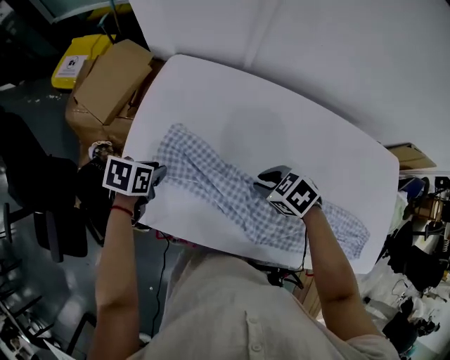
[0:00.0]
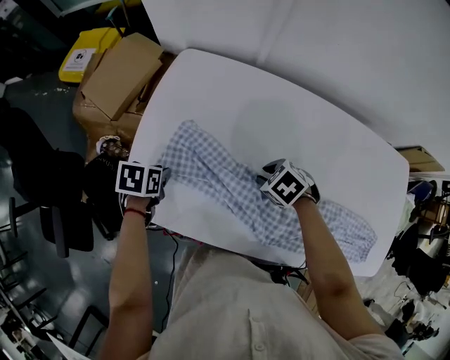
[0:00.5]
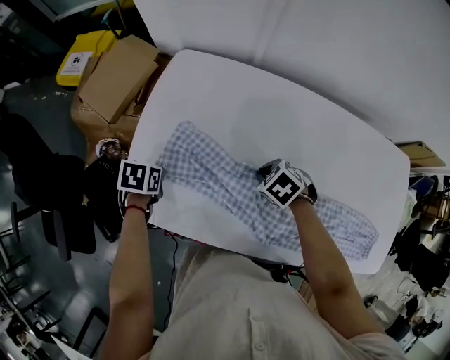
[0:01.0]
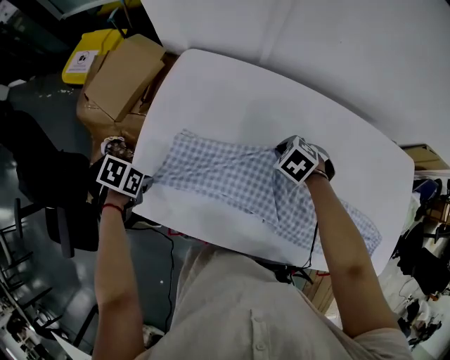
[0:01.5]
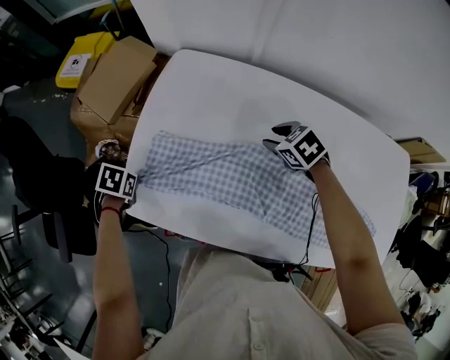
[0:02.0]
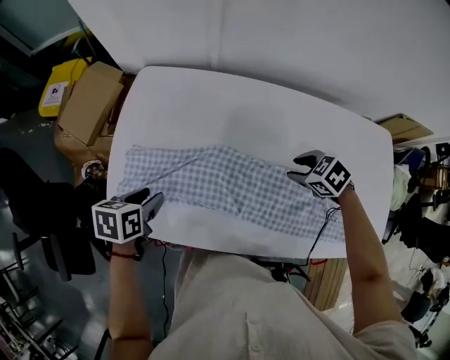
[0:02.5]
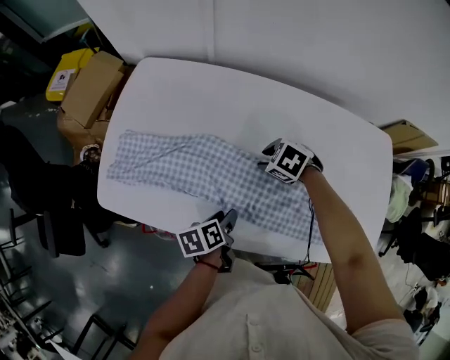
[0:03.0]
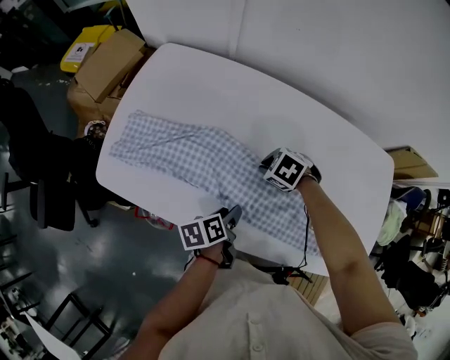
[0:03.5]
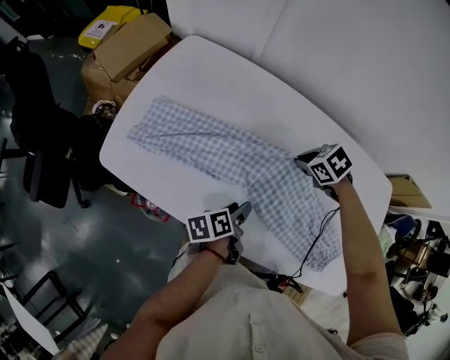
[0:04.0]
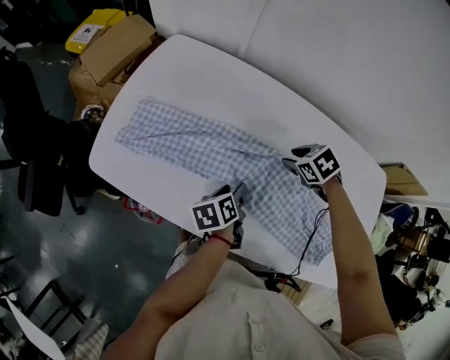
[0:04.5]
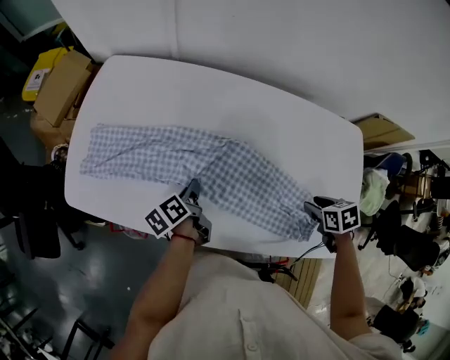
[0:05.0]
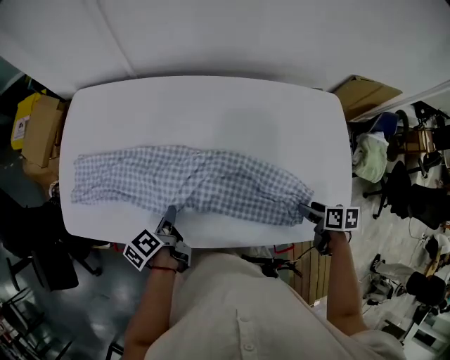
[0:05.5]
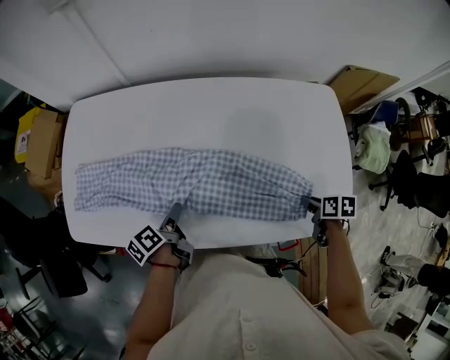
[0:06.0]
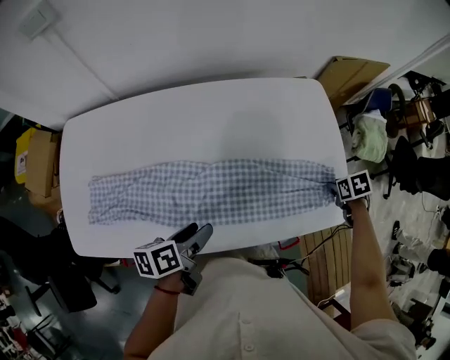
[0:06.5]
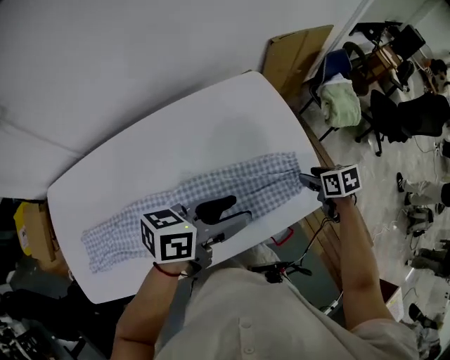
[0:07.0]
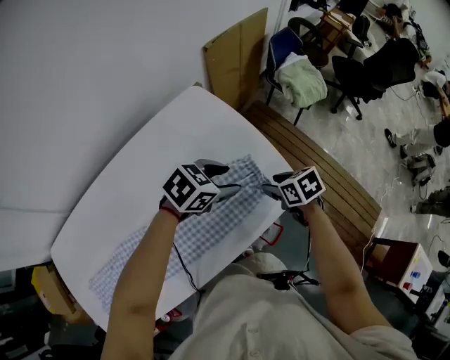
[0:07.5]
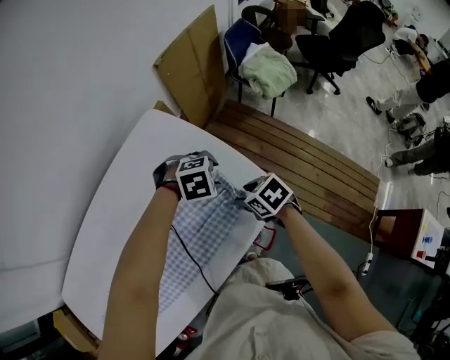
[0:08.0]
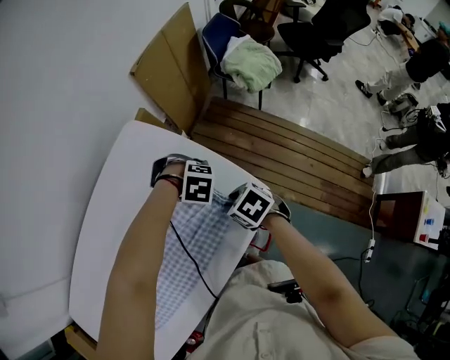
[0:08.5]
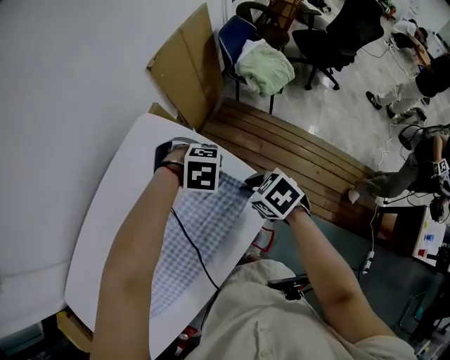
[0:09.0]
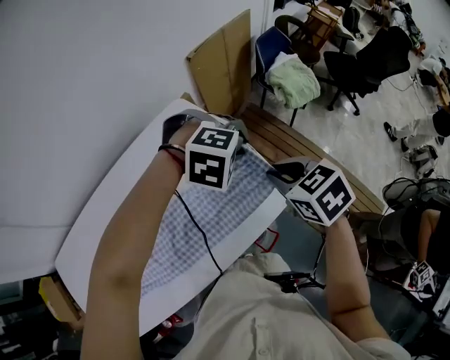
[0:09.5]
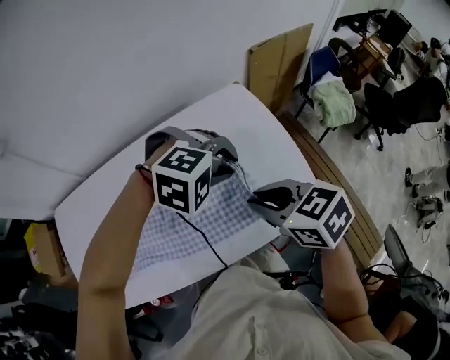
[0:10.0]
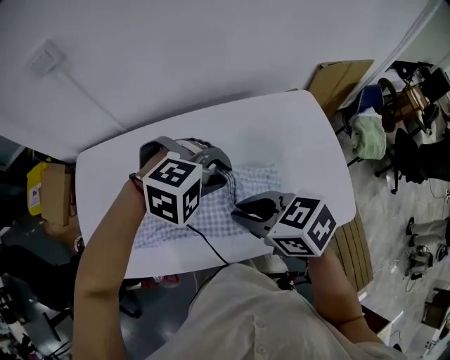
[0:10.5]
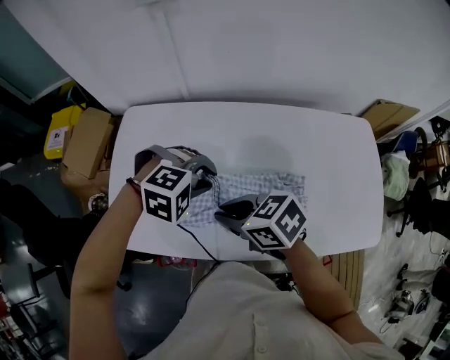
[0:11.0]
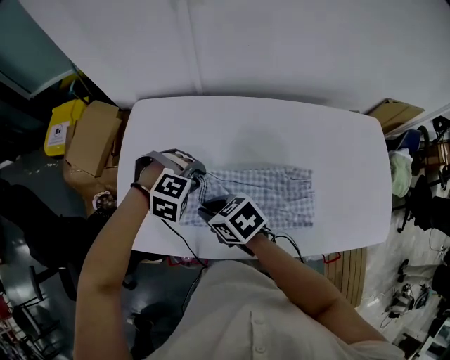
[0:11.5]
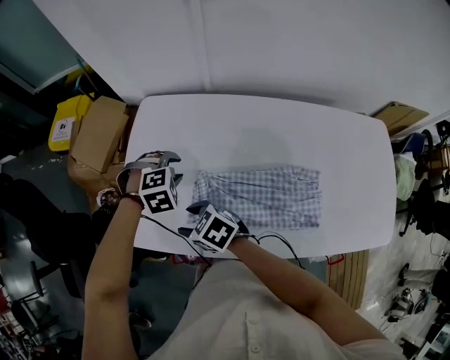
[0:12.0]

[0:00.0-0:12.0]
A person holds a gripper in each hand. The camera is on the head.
0:00.0 to 0:02.0: The left gripper moves some 15 cm, and rotates some 20 degrees. Meanwhile the right gripper changes place by about 10 cm, and opens up.
0:02.0 to 0:04.0: The right gripper changes place by approximately 20 cm, and closes its fingers. The left gripper moves some 10 cm upward and comes back, points its fingers approximately 50 degrees further upward, and opens its fingers.
0:04.0 to 0:06.0: The left gripper closes, then reopens. Meanwhile the right gripper ends up roughly 40 cm from where it was, twists roughly 80 degrees clockwise, seen from behind, and opens, then closes again.
0:06.0 to 0:08.0: The left gripper moves approximately 20 cm upward and comes back, and tips its fingers downward by some 30 degrees; the right gripper moves approximately 10 cm, and opens its fingers.
0:08.0 to 0:10.0: The two grippers go about 20 cm upward. The left gripper closes; the right gripper changes its angle by roughly 30 degrees, and closes its fingers.
0:10.0 to 0:12.0: The pair of grippers is taken roughly 70 cm. The right gripper changes its angle by about 50 degrees, and opens. Meanwhile the left gripper rolls counterclockwise, seen from behind, by approximately 60 degrees.

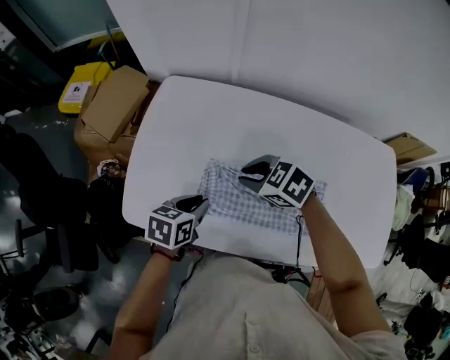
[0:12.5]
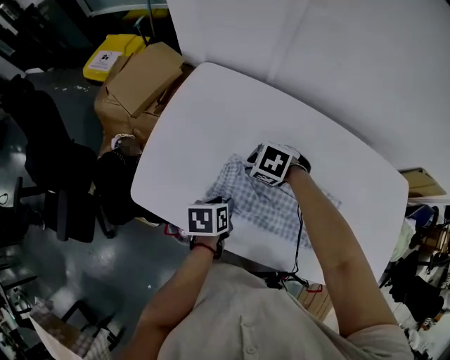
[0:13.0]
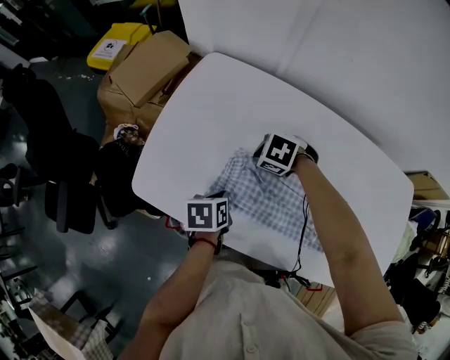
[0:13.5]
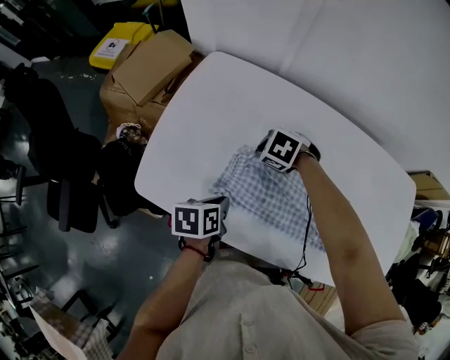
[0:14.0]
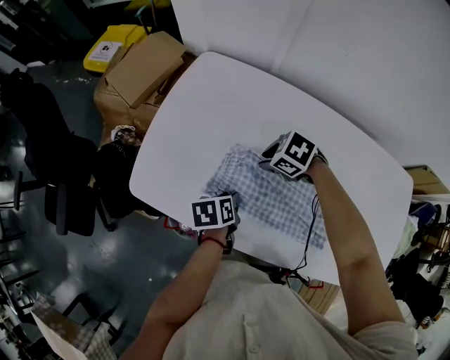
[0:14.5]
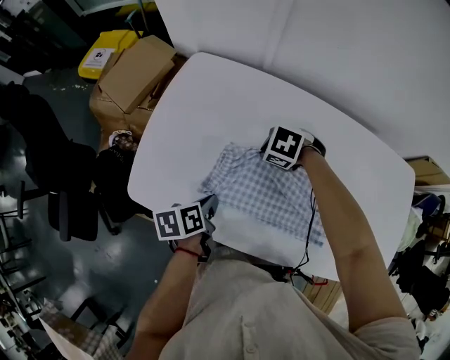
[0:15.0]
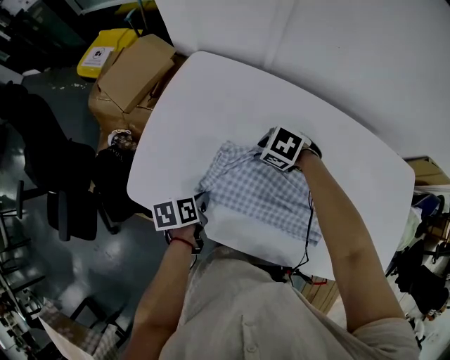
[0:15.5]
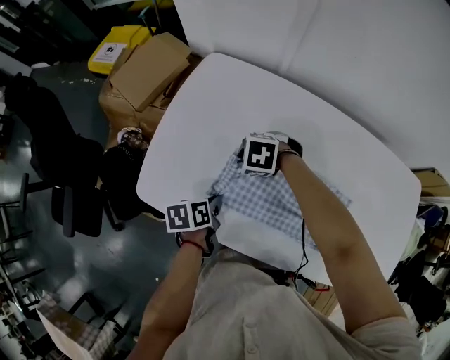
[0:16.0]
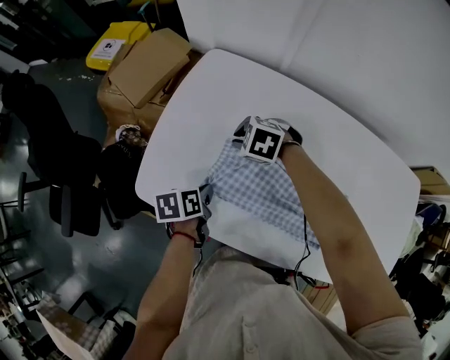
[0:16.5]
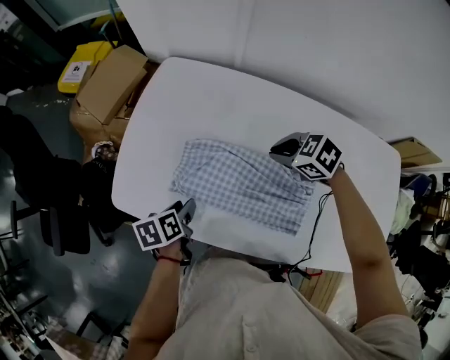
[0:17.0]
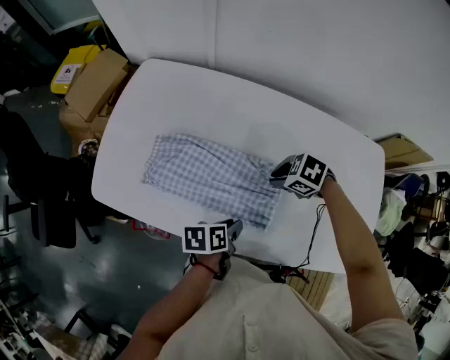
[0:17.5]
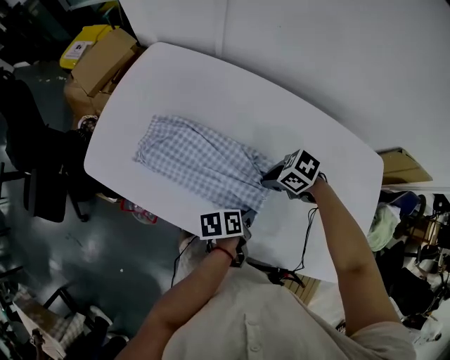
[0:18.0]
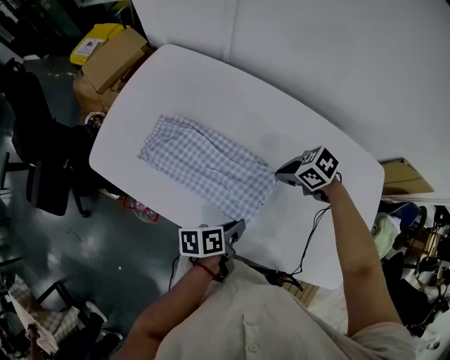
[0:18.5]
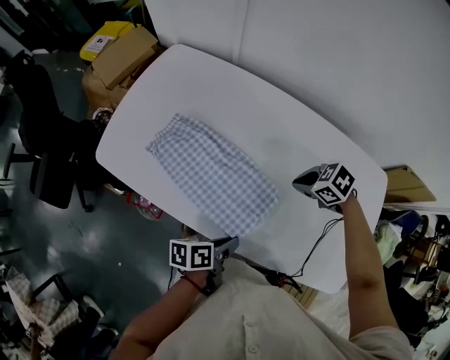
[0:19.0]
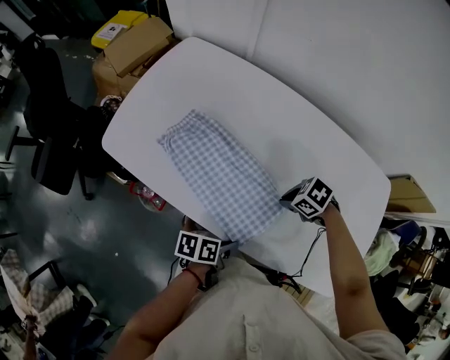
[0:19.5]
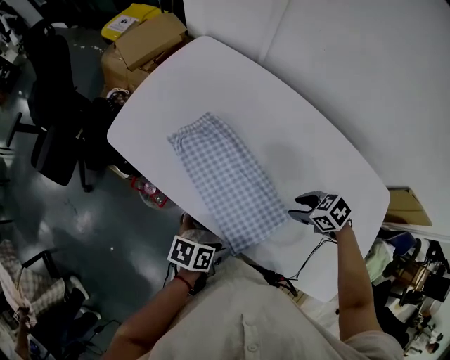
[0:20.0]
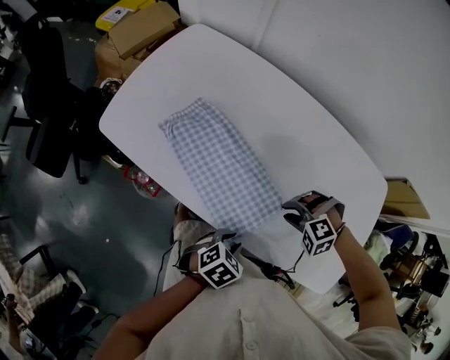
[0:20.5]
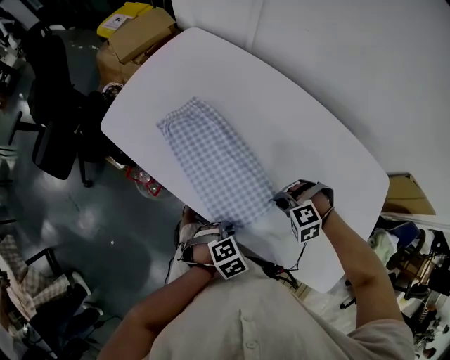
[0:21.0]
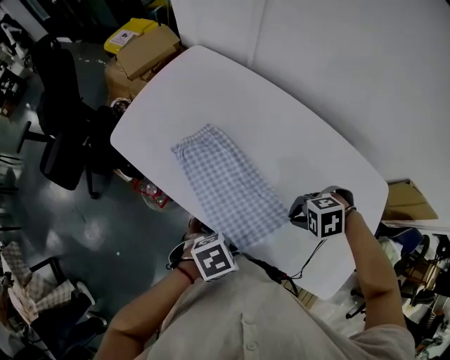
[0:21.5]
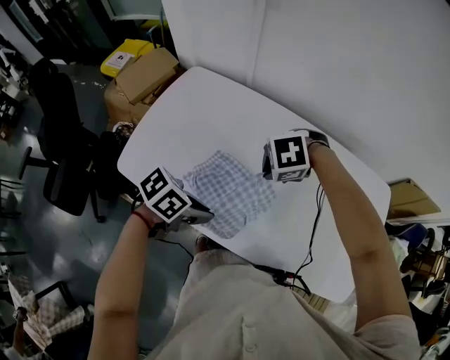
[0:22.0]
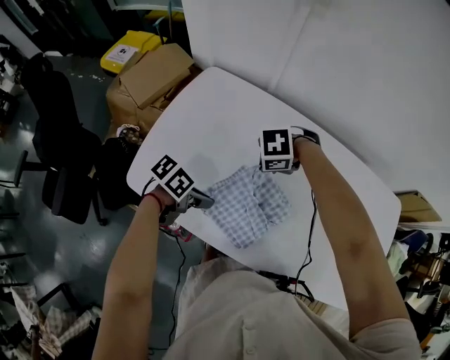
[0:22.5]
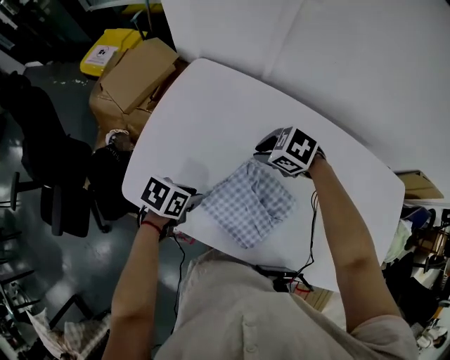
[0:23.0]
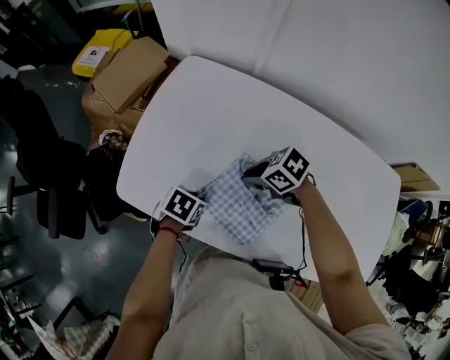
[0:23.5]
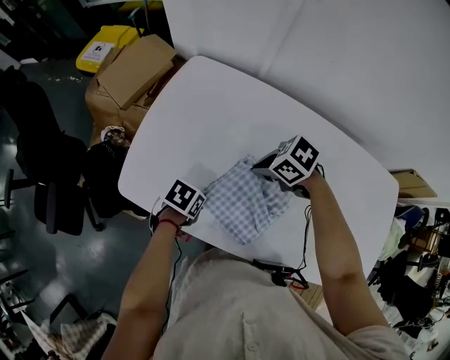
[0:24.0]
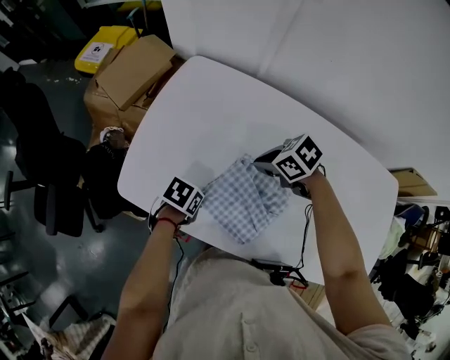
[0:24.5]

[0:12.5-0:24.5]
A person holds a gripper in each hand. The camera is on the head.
0:12.5 to 0:14.5: The two grippers go approximately 10 cm downward. The left gripper changes its angle by approximately 40 degrees, while the right gripper rotates roughly 20 degrees.
0:14.5 to 0:16.5: The left gripper shifts by some 10 cm, and closes its fingers; the right gripper moves some 10 cm, and swivels about 20 degrees.
0:16.5 to 0:18.5: The left gripper ends up some 40 cm from where it was, rotates approximately 30 degrees, and opens, then closes once more, while the right gripper shifts by approximately 40 cm, and turns by roughly 30 degrees.
0:18.5 to 0:20.5: The right gripper changes place by roughly 15 cm, twists about 70 degrees counterclockwise, seen from behind, and opens its fingers; the left gripper changes place by about 10 cm, rotates around the line of its fingers by about 60 degrees, clockwise from behind, and opens up.
0:20.5 to 0:22.5: The left gripper swings up and down, some 15 cm each way, with 2 reversals, and swivels some 40 degrees. The right gripper ends up some 35 cm from where it was, rotates some 30 degrees, and closes.
0:22.5 to 0:24.5: The right gripper swivels approximately 60 degrees, while the left gripper shifts some 10 cm downward, and changes its angle by roughly 30 degrees.

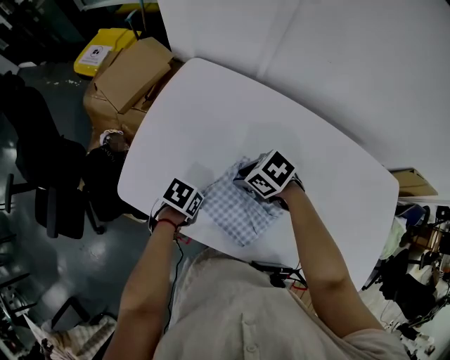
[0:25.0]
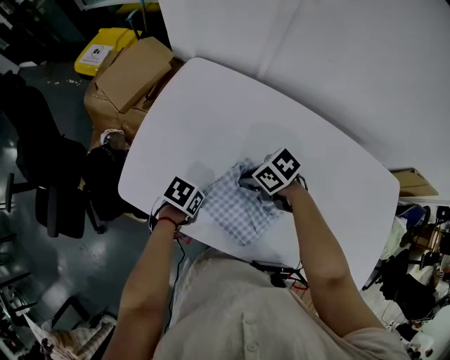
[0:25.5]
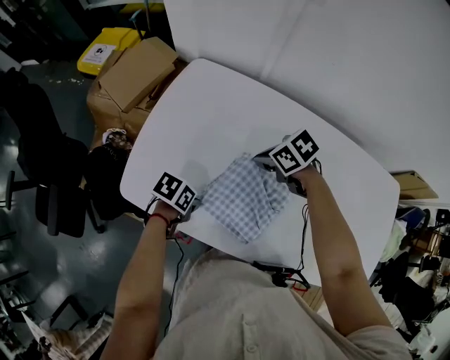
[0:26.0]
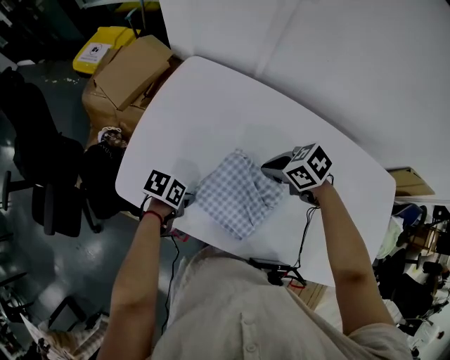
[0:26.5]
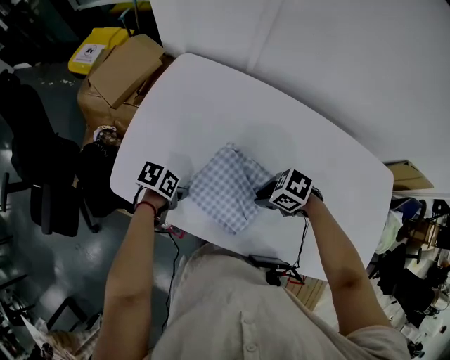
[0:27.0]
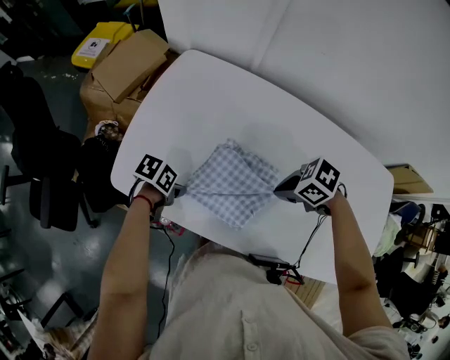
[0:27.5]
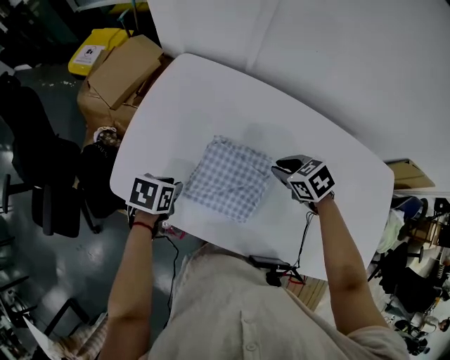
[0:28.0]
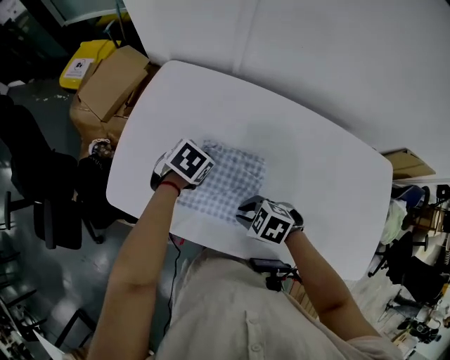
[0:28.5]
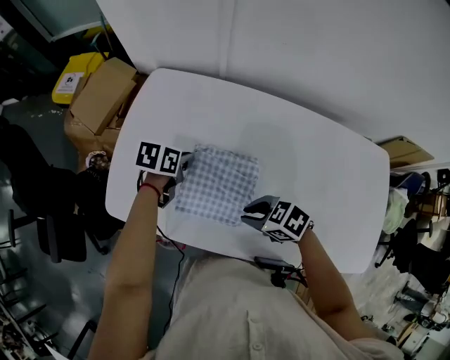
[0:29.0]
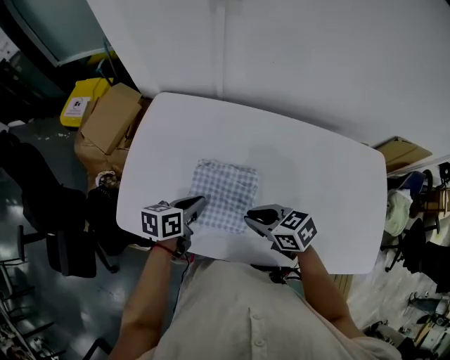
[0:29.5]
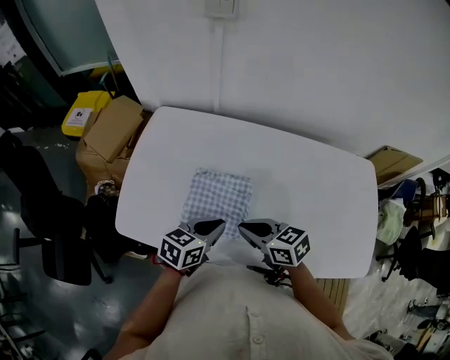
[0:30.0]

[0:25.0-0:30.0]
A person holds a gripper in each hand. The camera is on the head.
0:25.0 to 0:27.5: The right gripper moves about 15 cm, and closes.
0:27.5 to 0:30.0: The right gripper is displaced upward by some 10 cm, and rotates approximately 50 degrees; the left gripper changes place by approximately 20 cm, and swivels approximately 50 degrees.
